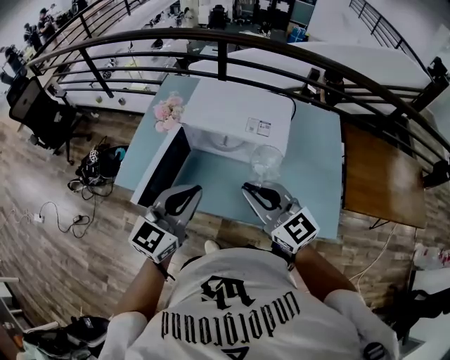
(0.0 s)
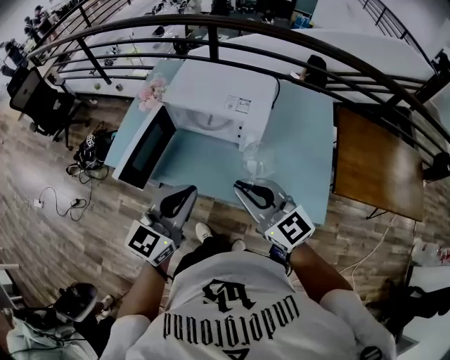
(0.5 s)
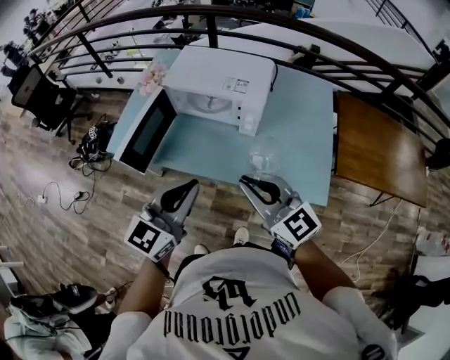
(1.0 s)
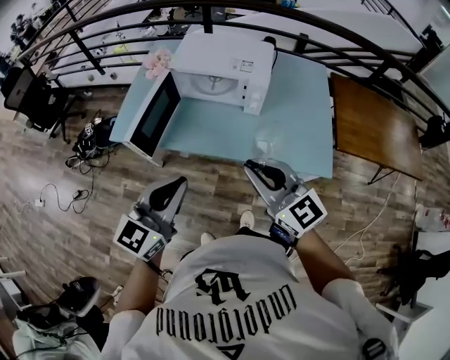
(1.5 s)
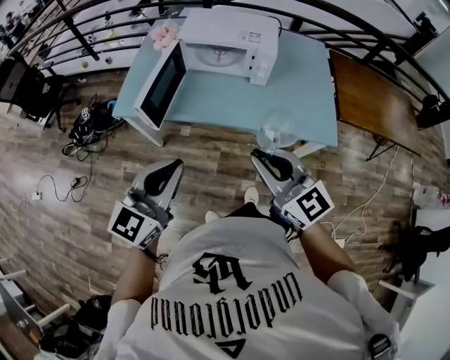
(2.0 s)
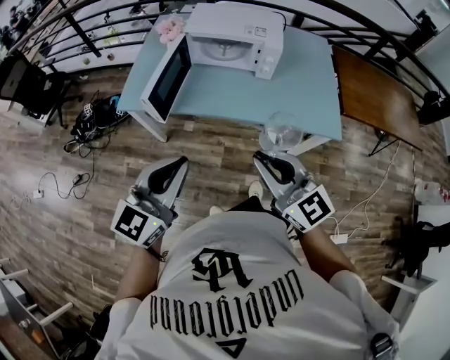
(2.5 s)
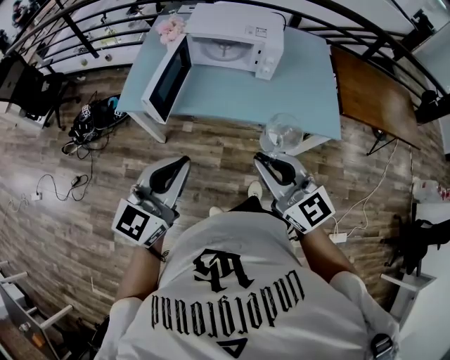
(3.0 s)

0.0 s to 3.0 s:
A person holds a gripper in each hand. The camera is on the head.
0.0 to 1.5 s: The two grippers go about 20 cm backward.
1.5 to 3.0 s: The left gripper heads to the left and backward, covering about 15 cm; the right gripper goes about 15 cm backward and to the left.

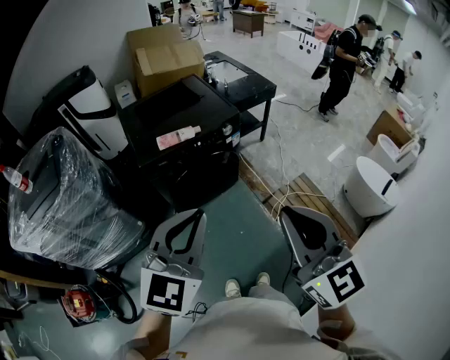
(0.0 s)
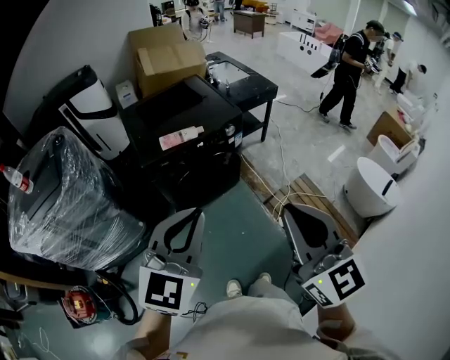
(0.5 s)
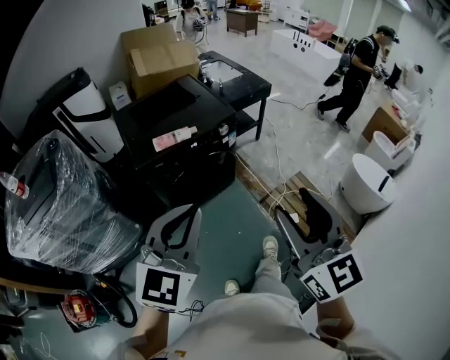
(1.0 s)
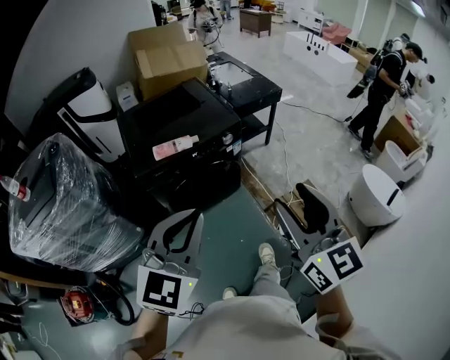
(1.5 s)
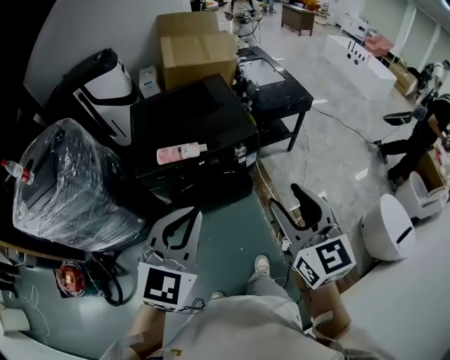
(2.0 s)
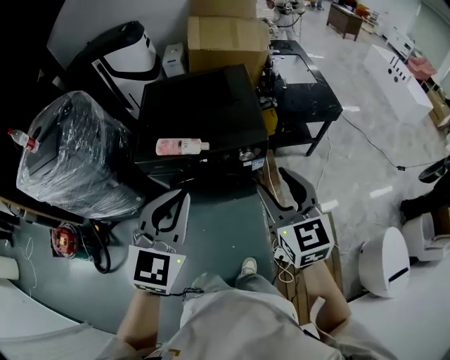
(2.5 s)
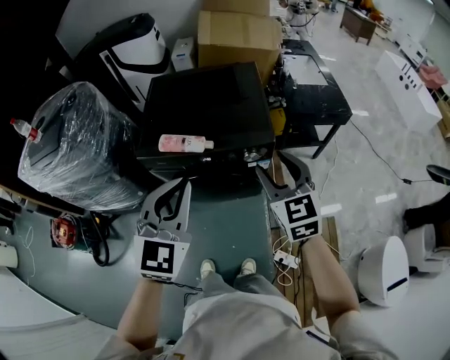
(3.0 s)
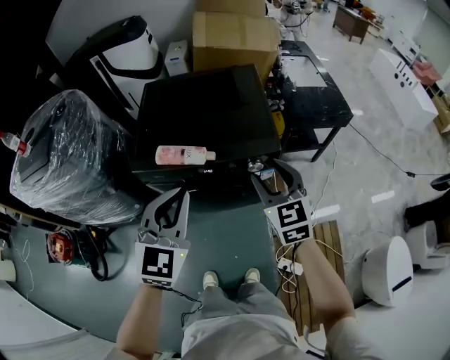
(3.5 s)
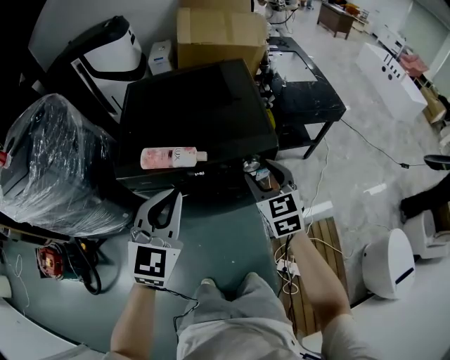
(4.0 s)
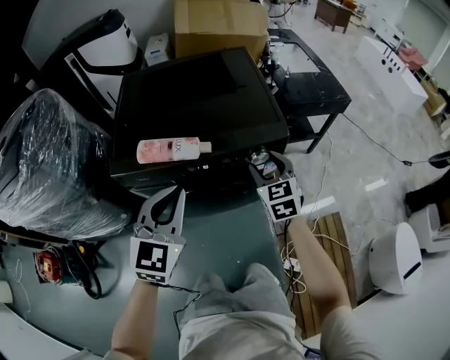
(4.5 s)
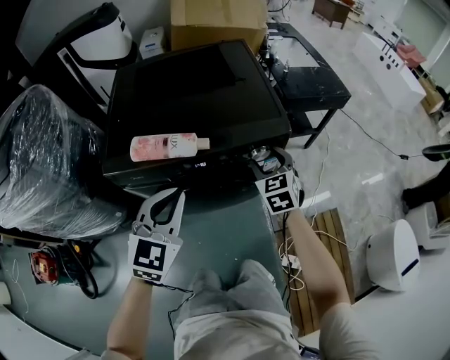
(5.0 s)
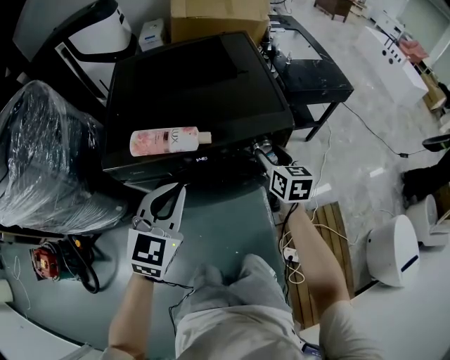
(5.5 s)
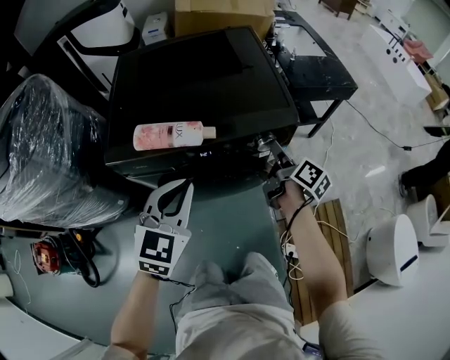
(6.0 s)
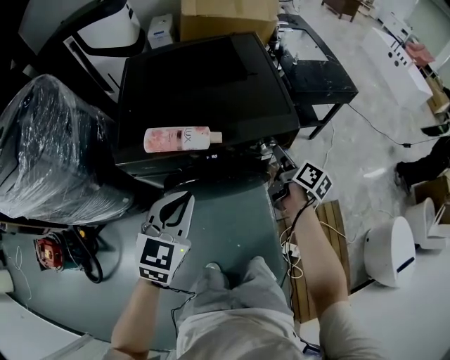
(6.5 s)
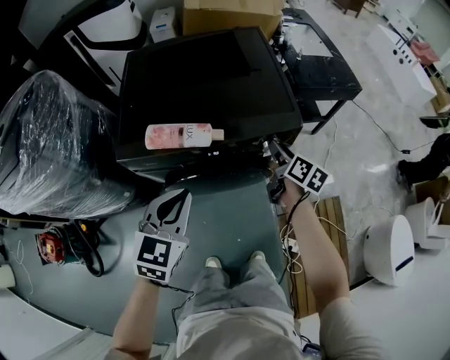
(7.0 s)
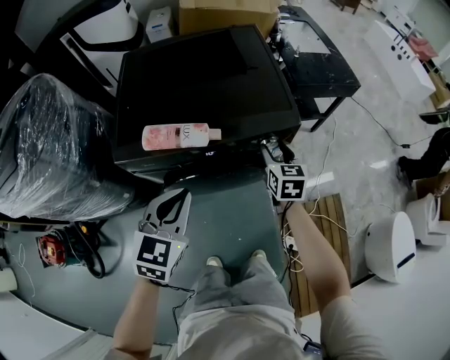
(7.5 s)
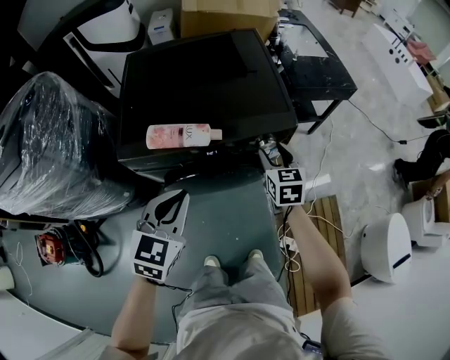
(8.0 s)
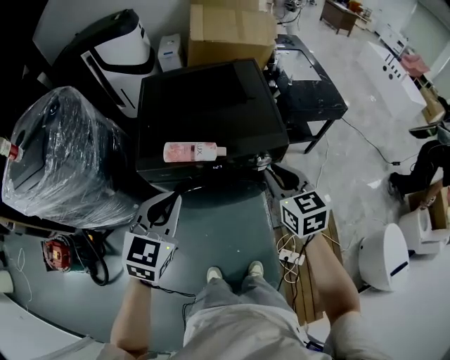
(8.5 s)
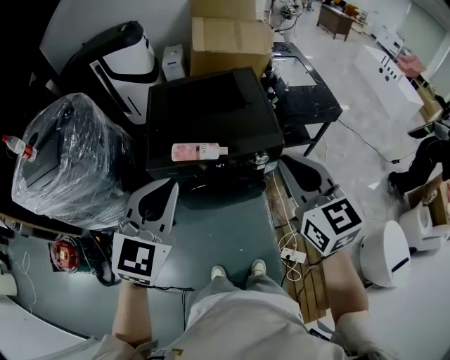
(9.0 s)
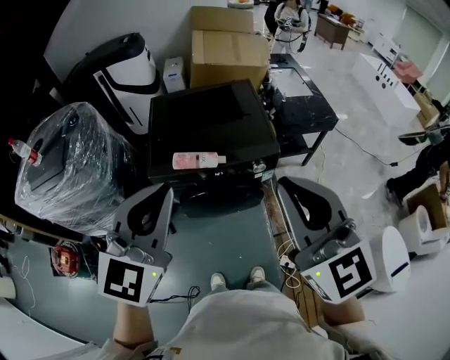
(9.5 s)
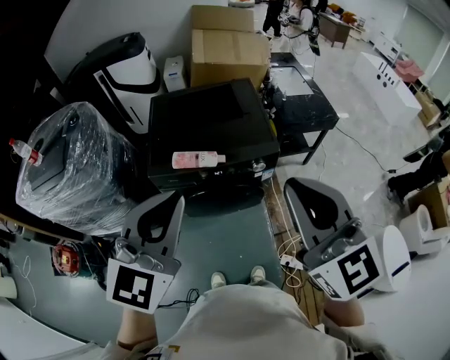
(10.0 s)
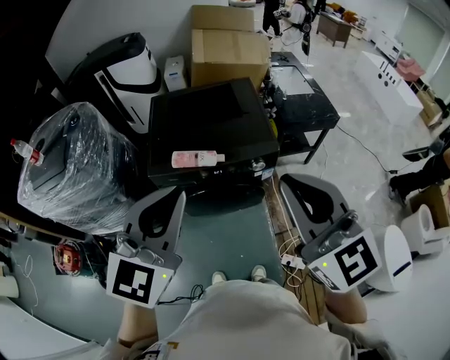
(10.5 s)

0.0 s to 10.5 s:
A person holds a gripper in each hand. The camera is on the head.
0.0 to 2.0 s: Both grippers travel together forward, some 25 cm. The right gripper opens.
2.0 to 4.0 s: Both grippers travel together forward and downward, about 35 cm. The right gripper rotates about 20 degrees.
4.0 to 6.5 s: The left gripper moves downward, some 10 cm, while the right gripper travels downward and forward by about 15 cm, and rolls clockwise, seen from behind, by some 70 degrees.
6.5 to 8.5 s: The right gripper moves upward and backward, some 25 cm, and twists about 60 degrees counterclockwise, seen from behind; the left gripper goes approximately 10 cm upward.
8.5 to 10.5 s: The two grippers go approximately 30 cm upward and backward. The right gripper swivels about 30 degrees.

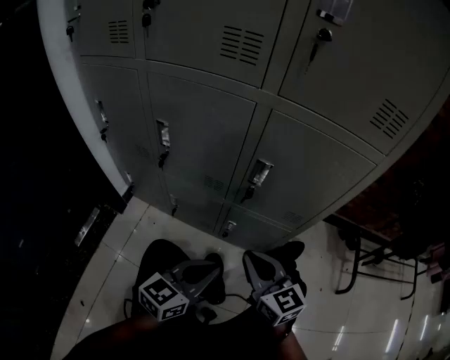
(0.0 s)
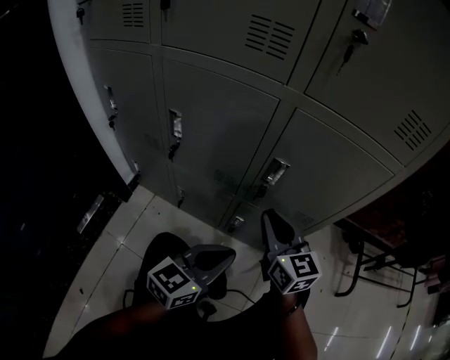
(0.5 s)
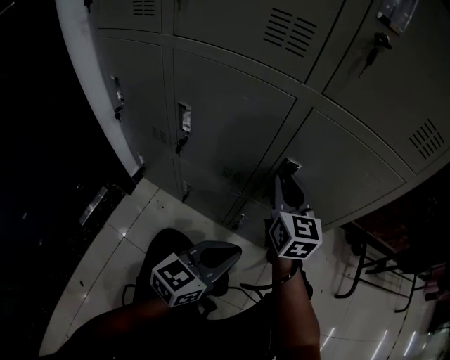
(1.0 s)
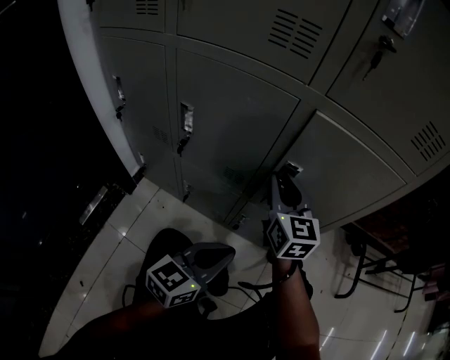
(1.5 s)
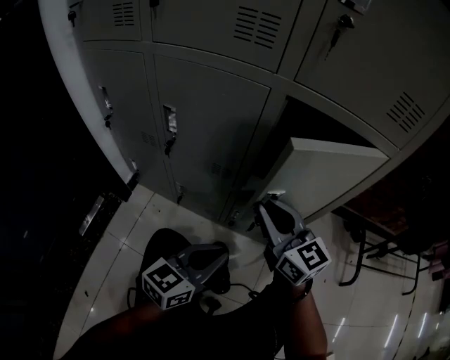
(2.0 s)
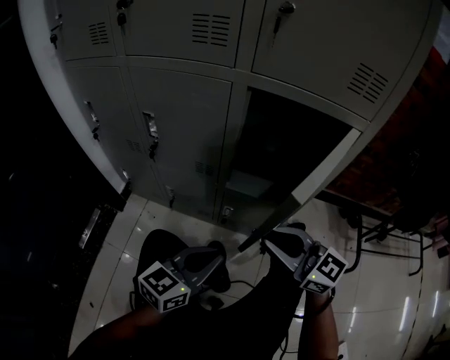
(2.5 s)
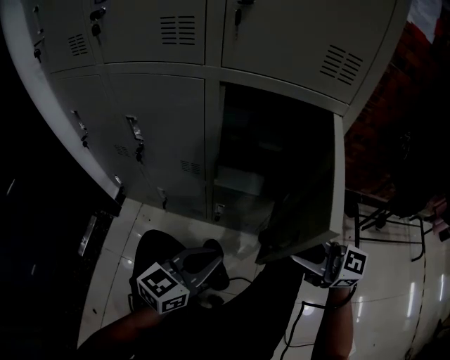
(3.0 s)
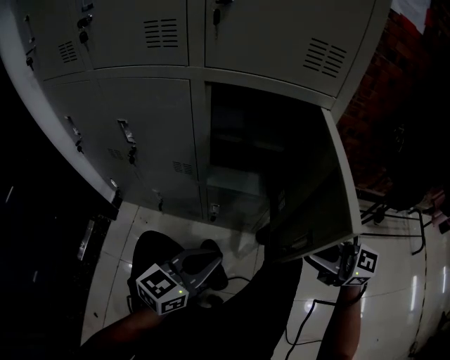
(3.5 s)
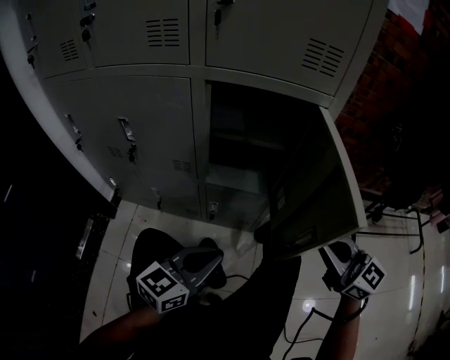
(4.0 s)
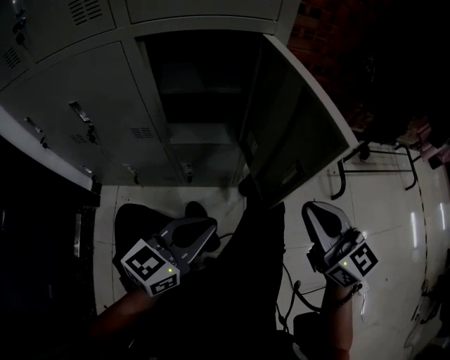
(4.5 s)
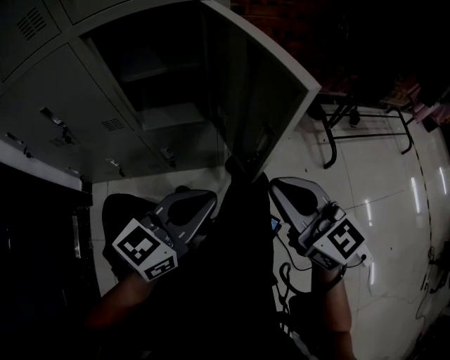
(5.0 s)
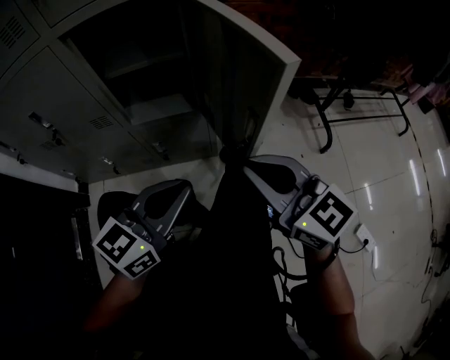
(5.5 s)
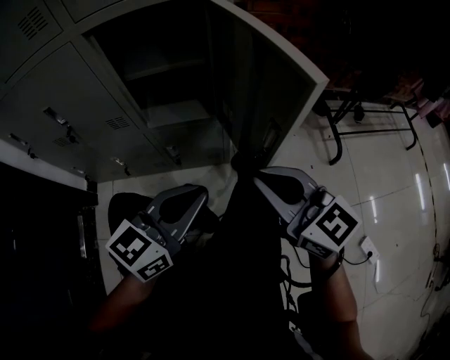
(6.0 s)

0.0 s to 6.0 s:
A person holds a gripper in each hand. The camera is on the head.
0.0 to 2.0 s: The right gripper moves forward and upward, roughly 10 cm.
2.0 to 4.0 s: The right gripper travels to the right and backward by roughly 30 cm. The left gripper shifts about 10 cm to the right and backward.
4.0 to 6.0 s: The left gripper is displaced to the right by roughly 10 cm. The right gripper is displaced backward by some 5 cm.

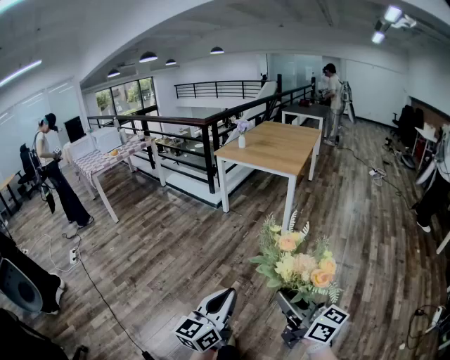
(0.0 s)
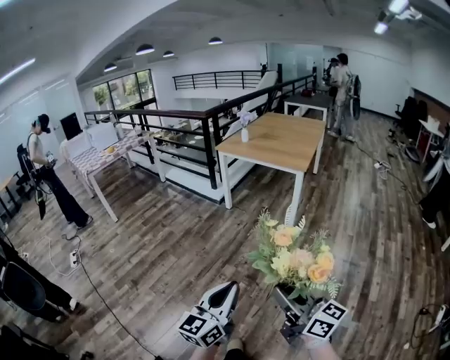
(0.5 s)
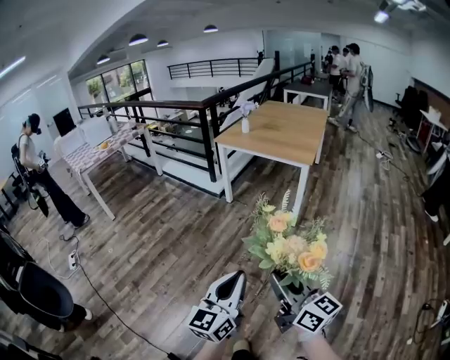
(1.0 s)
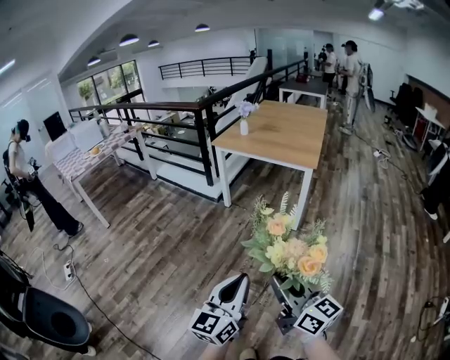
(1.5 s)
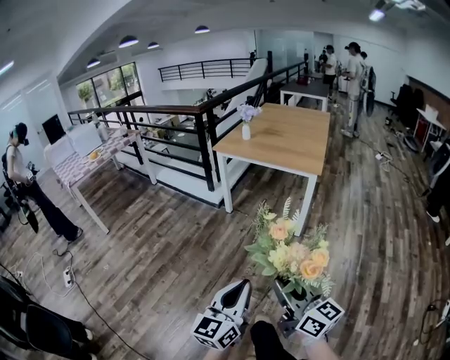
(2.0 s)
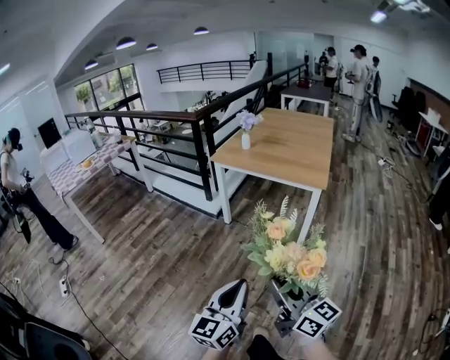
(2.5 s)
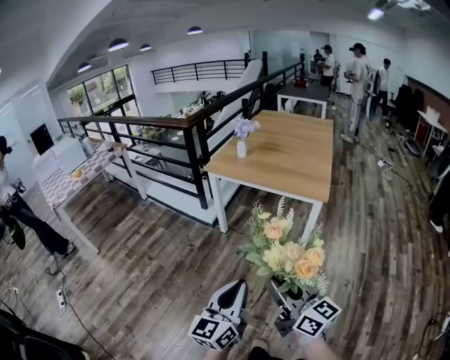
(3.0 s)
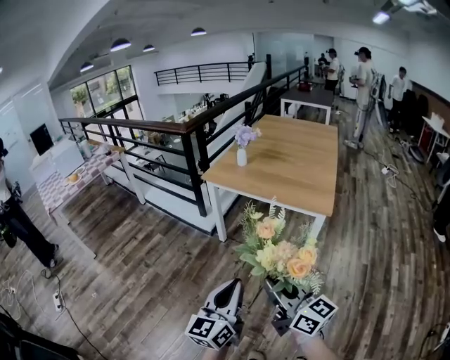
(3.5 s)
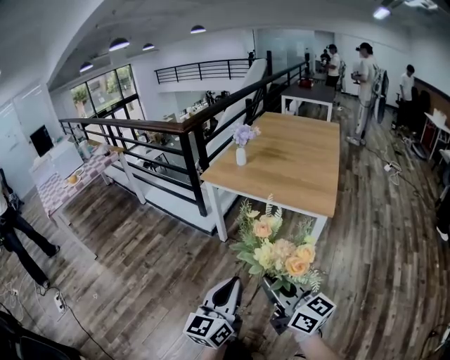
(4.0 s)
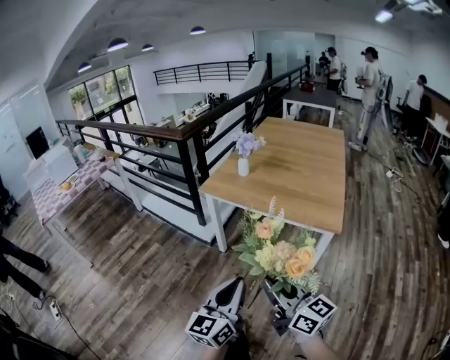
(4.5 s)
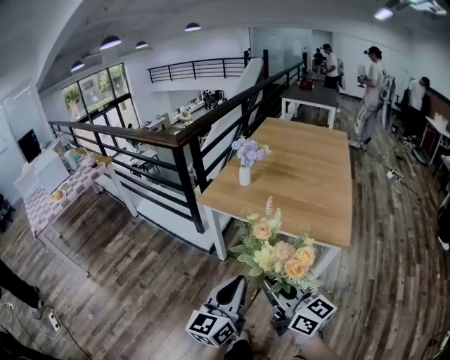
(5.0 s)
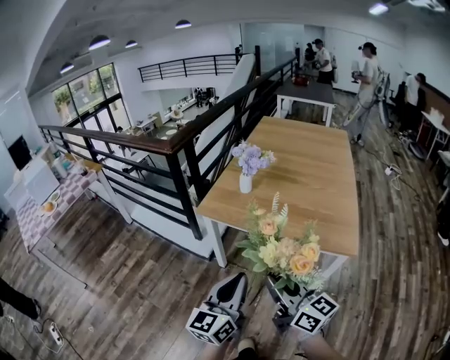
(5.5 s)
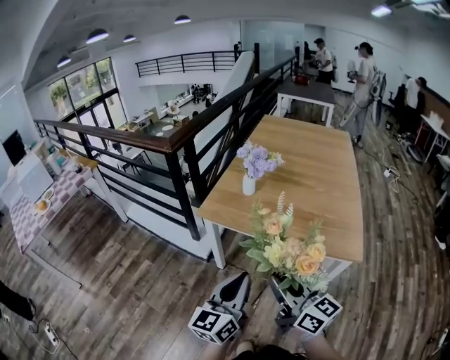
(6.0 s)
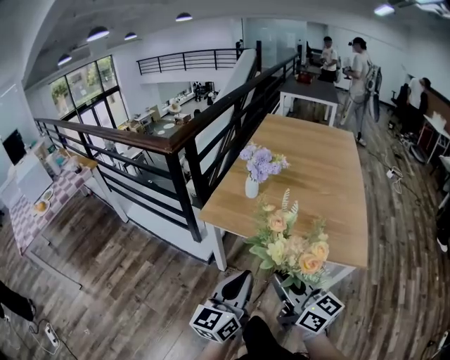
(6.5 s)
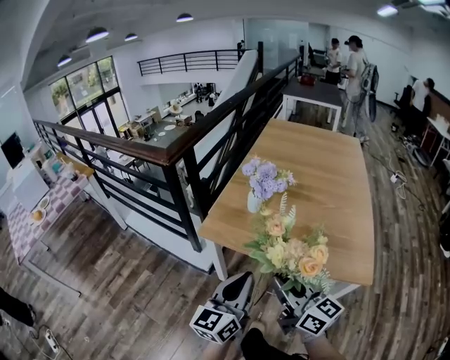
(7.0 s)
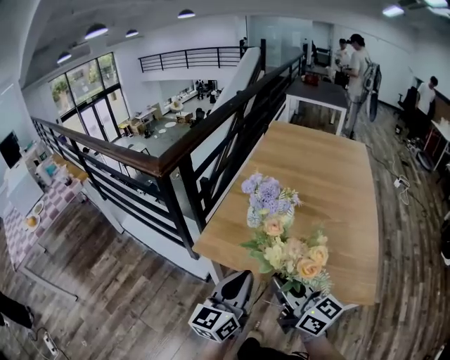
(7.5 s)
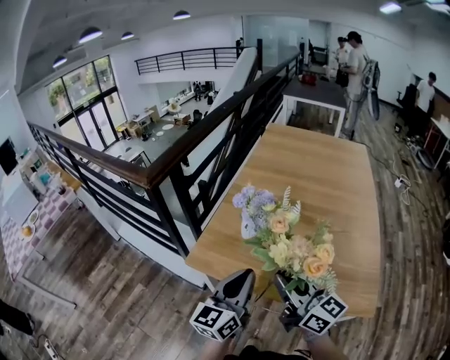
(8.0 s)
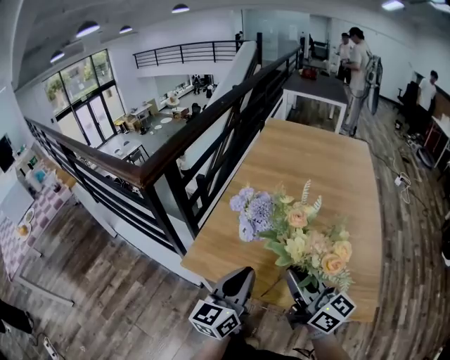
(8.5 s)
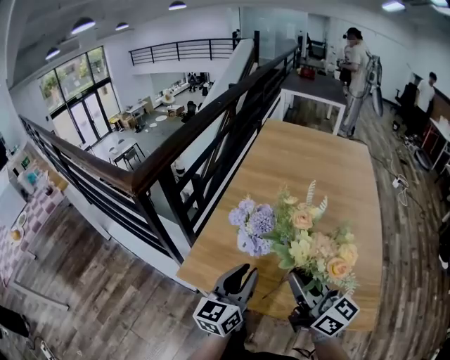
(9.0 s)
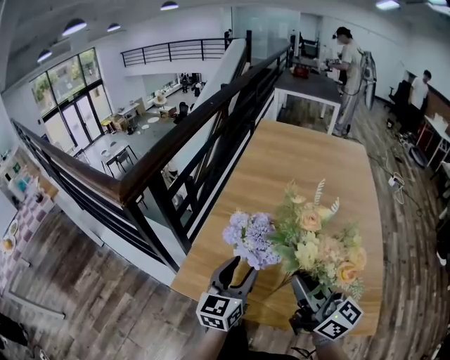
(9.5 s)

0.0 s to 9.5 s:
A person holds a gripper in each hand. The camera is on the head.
0.0 to 2.0 s: Both grippers move forward, some 30 cm.
2.0 to 4.0 s: The two grippers go about 35 cm forward.
4.0 to 5.5 s: The two grippers go some 30 cm forward.
5.5 to 7.5 s: The two grippers go approximately 25 cm forward.
7.5 to 9.5 s: The left gripper travels forward by about 20 cm, and opens. Meanwhile the right gripper shifts some 15 cm forward and to the right.
